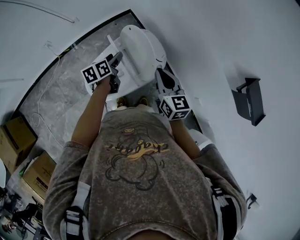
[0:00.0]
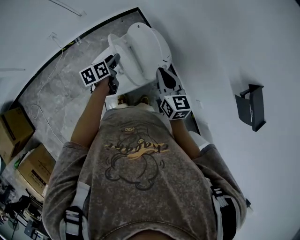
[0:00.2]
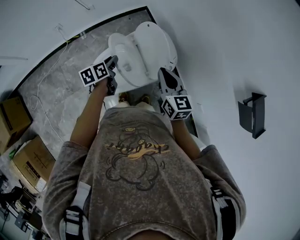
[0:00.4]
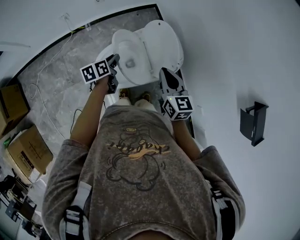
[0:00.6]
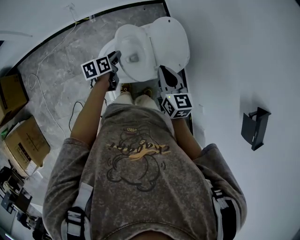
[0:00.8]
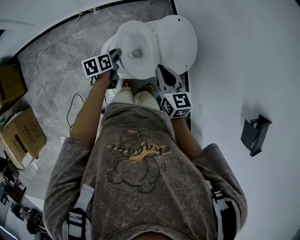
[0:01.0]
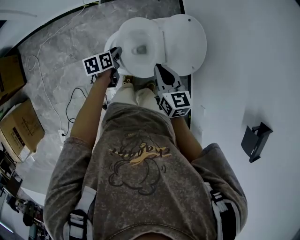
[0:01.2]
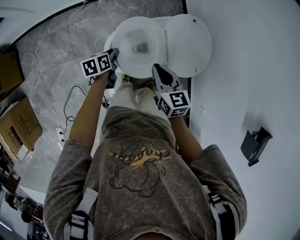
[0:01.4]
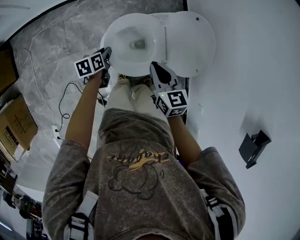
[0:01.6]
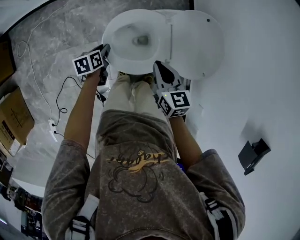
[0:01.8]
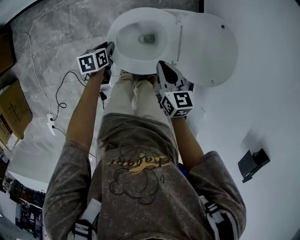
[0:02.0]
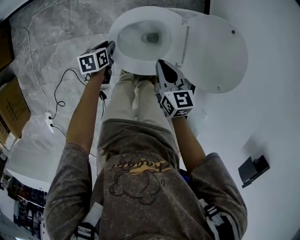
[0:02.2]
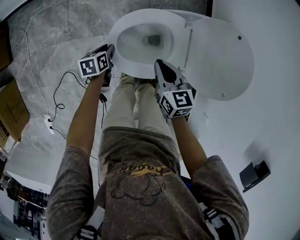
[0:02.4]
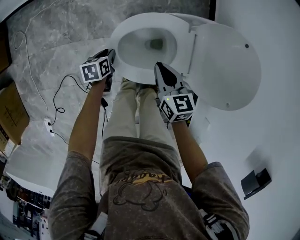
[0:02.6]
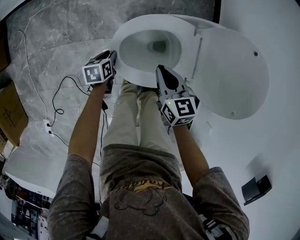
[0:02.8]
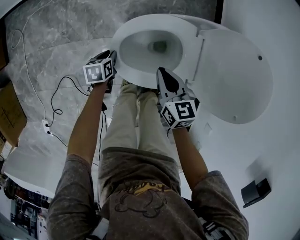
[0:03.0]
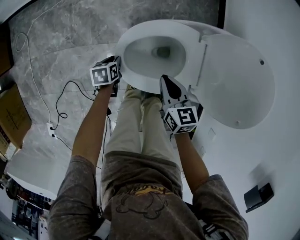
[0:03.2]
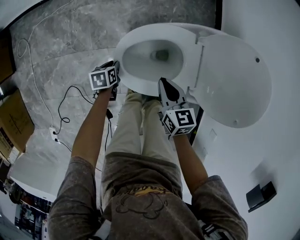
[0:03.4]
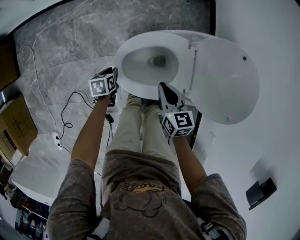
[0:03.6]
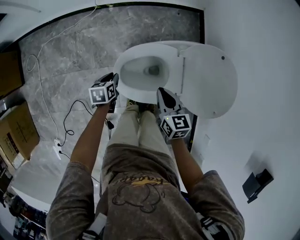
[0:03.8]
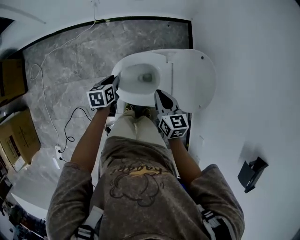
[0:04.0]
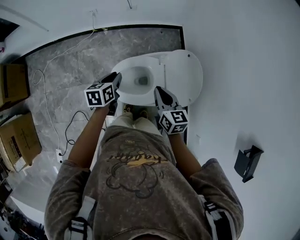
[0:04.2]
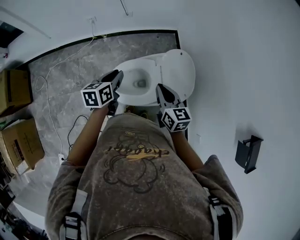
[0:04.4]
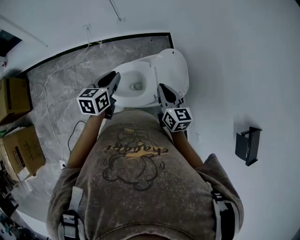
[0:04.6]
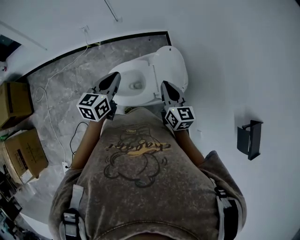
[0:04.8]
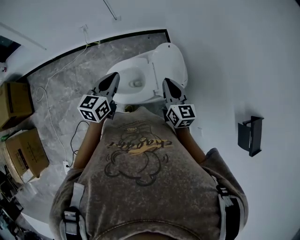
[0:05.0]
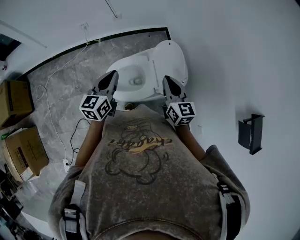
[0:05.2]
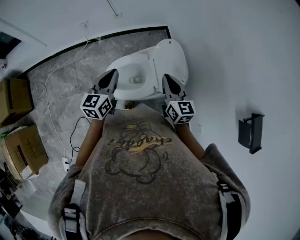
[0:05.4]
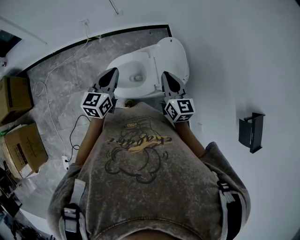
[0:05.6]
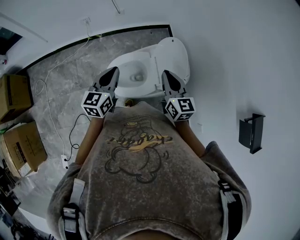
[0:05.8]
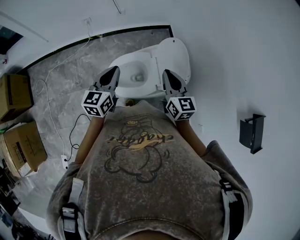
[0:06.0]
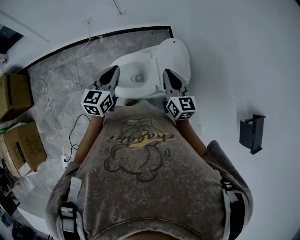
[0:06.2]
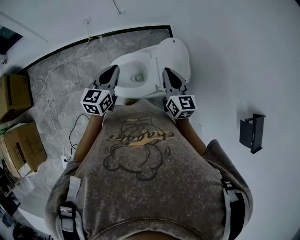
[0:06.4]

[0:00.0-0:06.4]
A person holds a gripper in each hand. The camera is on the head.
0:00.0 to 0:01.6: Both grippers travel together to the left and downward, about 30 cm. The left gripper turns by some 20 degrees, and closes. Meanwhile the right gripper turns by approximately 30 degrees.
0:01.6 to 0:03.2: Both grippers travel together downward, some 20 cm.
0:03.2 to 0:04.8: The right gripper heads upward and to the right, covering about 40 cm, and swivels roughly 30 degrees; the left gripper is displaced upward by roughly 60 cm, and angles its fingers upward, by approximately 50 degrees.
0:04.8 to 0:06.4: The grippers make only small movements.

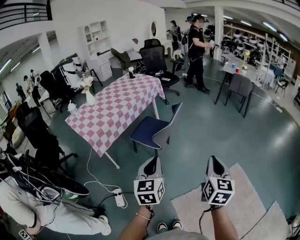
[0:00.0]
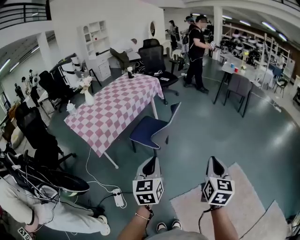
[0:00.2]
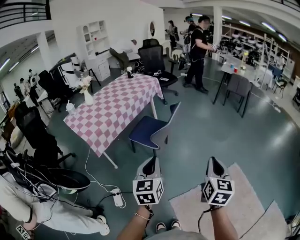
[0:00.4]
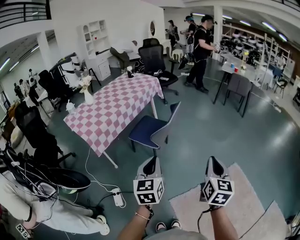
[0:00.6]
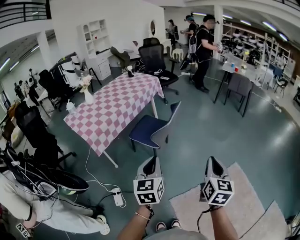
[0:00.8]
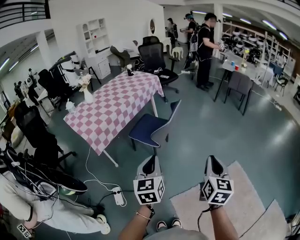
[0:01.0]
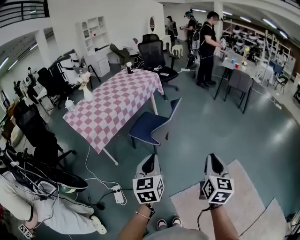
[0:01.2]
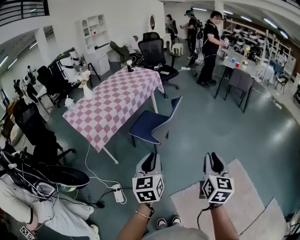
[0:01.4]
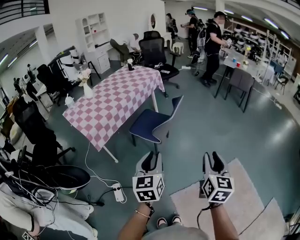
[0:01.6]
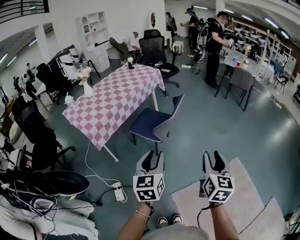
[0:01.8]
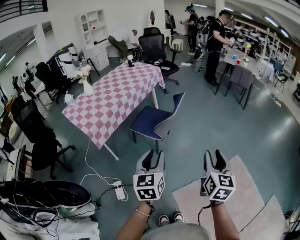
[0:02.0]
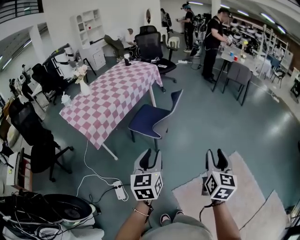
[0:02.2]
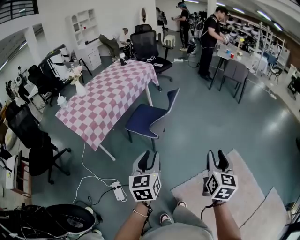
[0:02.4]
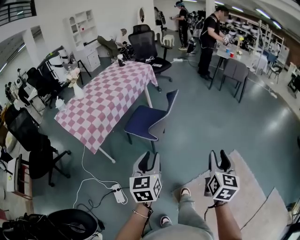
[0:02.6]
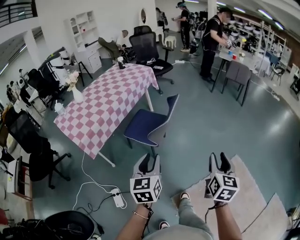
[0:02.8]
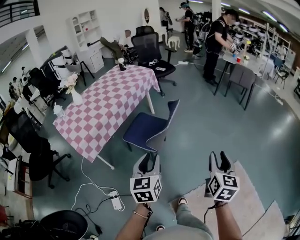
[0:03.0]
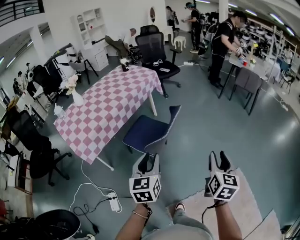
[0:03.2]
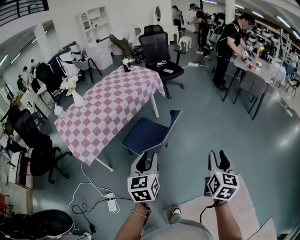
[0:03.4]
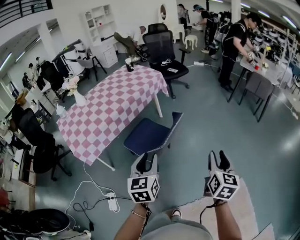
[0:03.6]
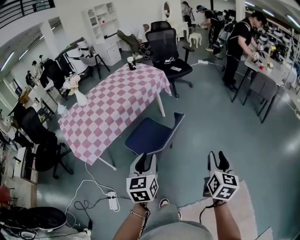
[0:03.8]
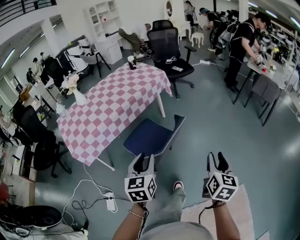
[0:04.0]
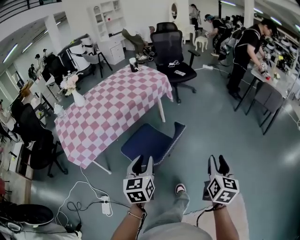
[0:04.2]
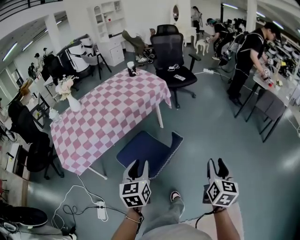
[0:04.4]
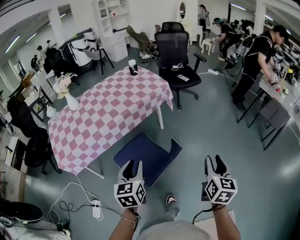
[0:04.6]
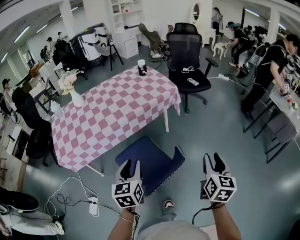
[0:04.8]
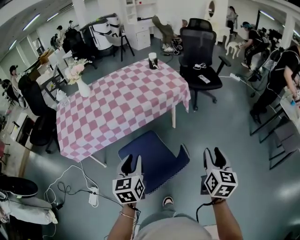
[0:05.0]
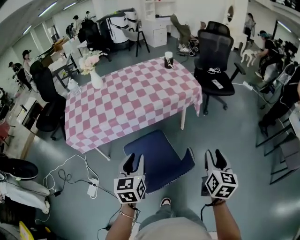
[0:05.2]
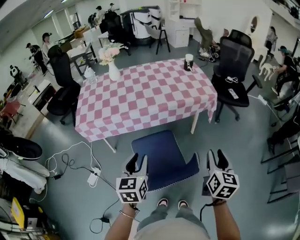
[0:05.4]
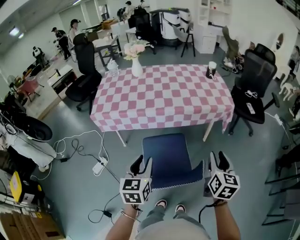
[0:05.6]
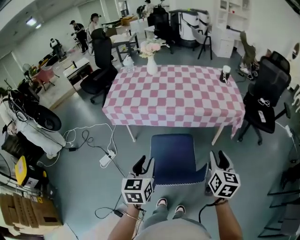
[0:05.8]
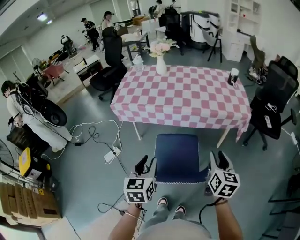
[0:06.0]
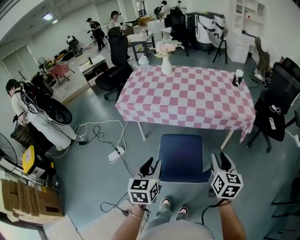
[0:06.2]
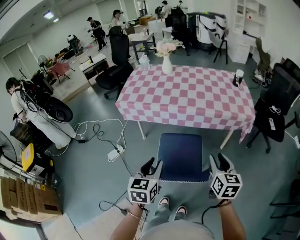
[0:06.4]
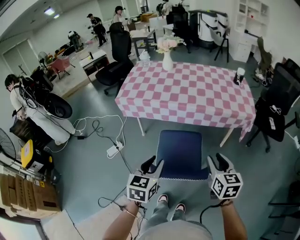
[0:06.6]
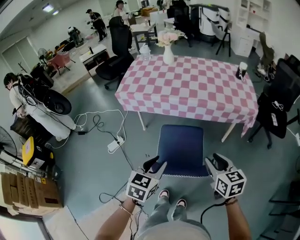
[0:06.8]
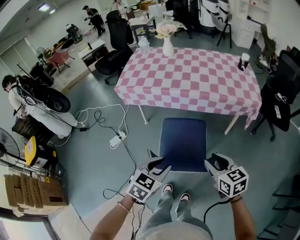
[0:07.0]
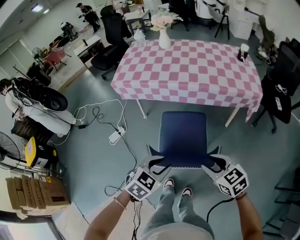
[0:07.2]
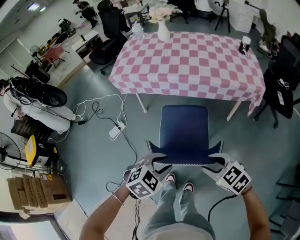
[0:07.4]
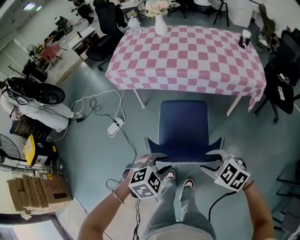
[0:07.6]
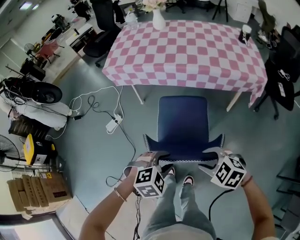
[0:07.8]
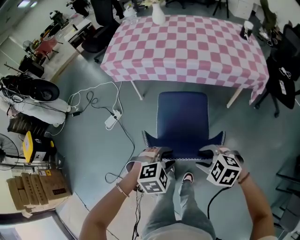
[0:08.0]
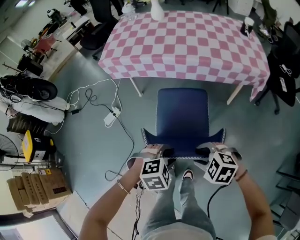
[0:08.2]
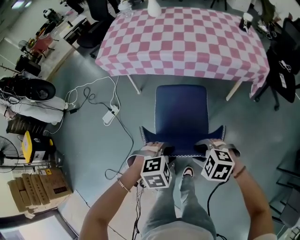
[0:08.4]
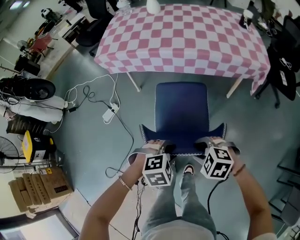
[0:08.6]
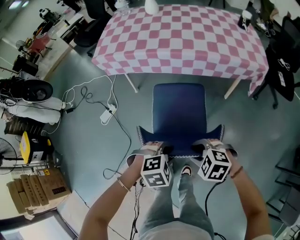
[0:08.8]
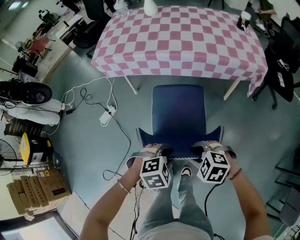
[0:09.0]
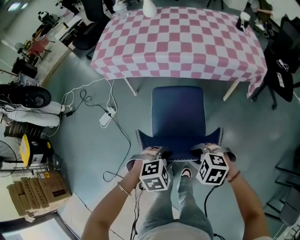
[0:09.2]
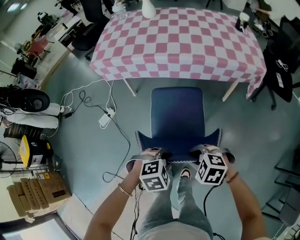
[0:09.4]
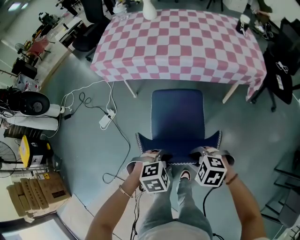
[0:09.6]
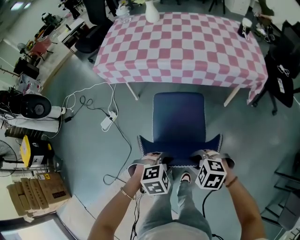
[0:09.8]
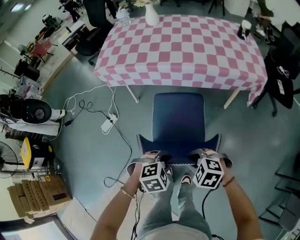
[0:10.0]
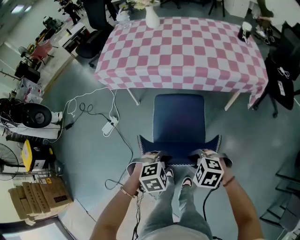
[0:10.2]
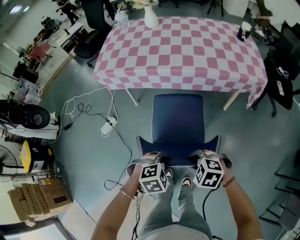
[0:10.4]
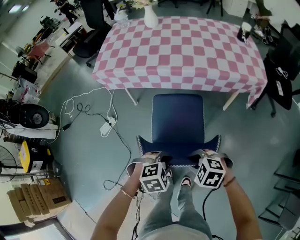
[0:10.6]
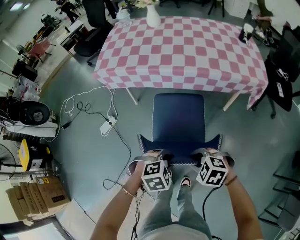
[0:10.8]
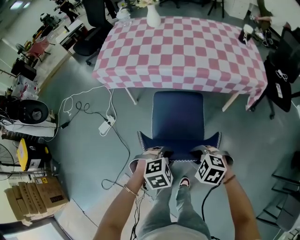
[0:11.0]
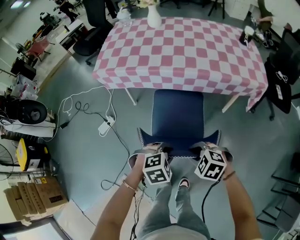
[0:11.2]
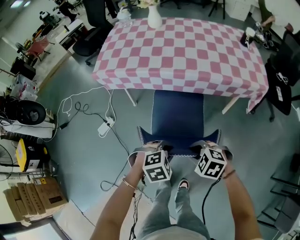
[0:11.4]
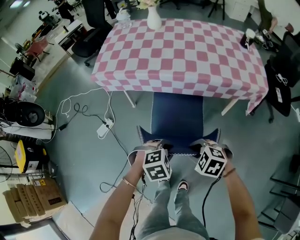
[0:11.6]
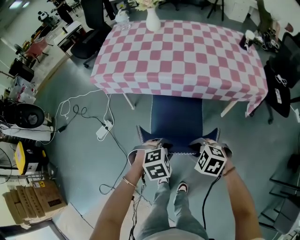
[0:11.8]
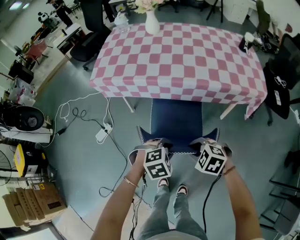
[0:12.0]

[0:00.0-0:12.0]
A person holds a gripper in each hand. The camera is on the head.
0:00.0 to 0:01.6: The right gripper opens its fingers, while the left gripper opens its fingers.
0:01.6 to 0:03.0: The two grippers go some 15 cm forward.
0:03.0 to 0:04.4: Both grippers move forward, roughly 35 cm.
0:04.4 to 0:06.0: The right gripper changes place by some 35 cm, and changes its angle by approximately 60 degrees, while the left gripper rotates roughly 50 degrees.
0:06.0 to 0:07.6: The left gripper travels downward, backward and to the right by approximately 20 cm, and tips its fingers downward by roughly 40 degrees. Meanwhile the right gripper heads downward, backward and to the left, covering some 20 cm, and points its fingers some 30 degrees further downward.
0:07.6 to 0:09.0: Both grippers travel together downward, roughly 10 cm.
0:09.0 to 0:10.4: The grippers stay close to where they were, moving slightly.
0:10.4 to 0:12.0: The left gripper changes place by some 15 cm, while the right gripper ends up roughly 10 cm from where it was.

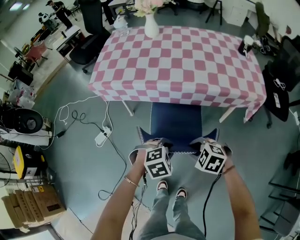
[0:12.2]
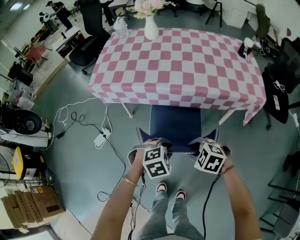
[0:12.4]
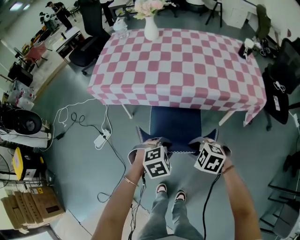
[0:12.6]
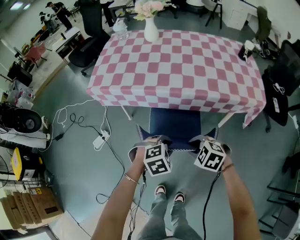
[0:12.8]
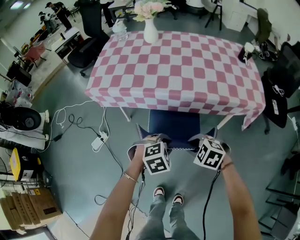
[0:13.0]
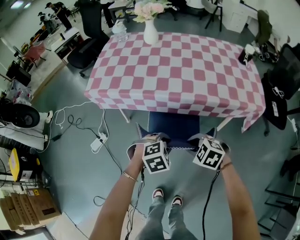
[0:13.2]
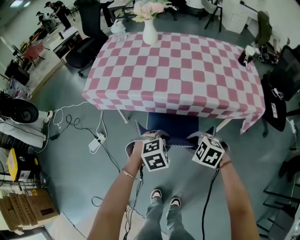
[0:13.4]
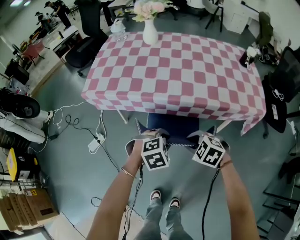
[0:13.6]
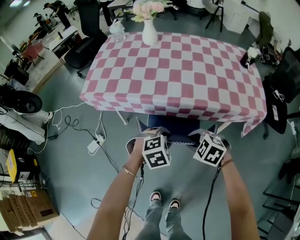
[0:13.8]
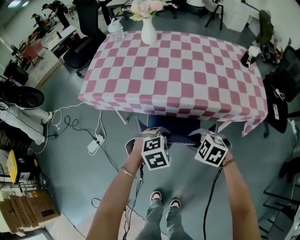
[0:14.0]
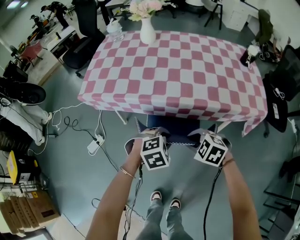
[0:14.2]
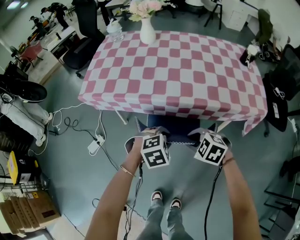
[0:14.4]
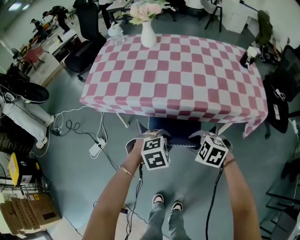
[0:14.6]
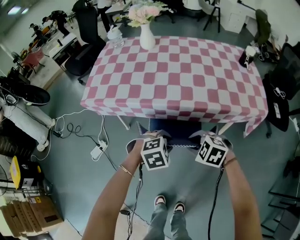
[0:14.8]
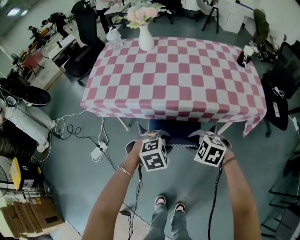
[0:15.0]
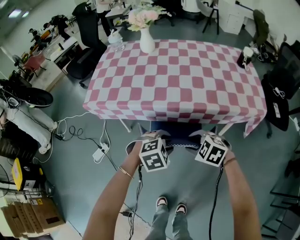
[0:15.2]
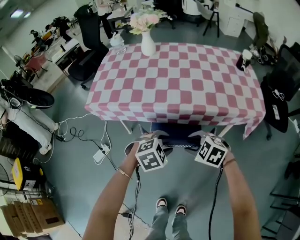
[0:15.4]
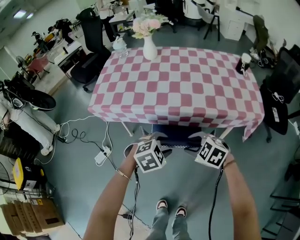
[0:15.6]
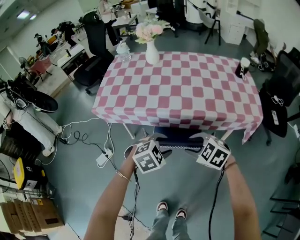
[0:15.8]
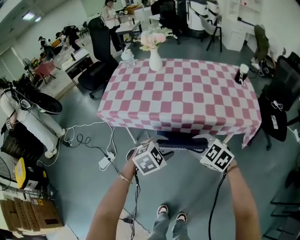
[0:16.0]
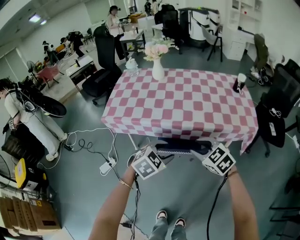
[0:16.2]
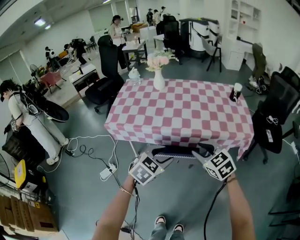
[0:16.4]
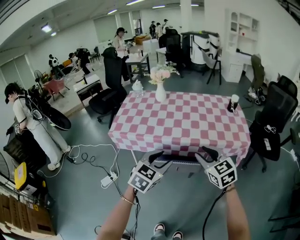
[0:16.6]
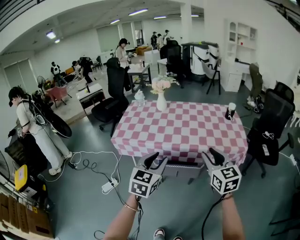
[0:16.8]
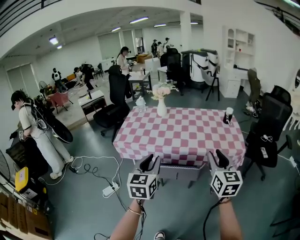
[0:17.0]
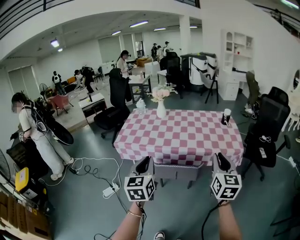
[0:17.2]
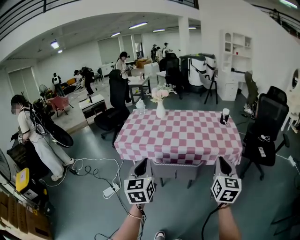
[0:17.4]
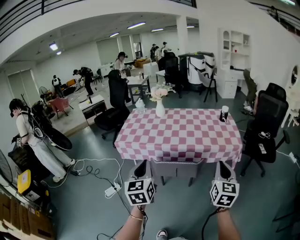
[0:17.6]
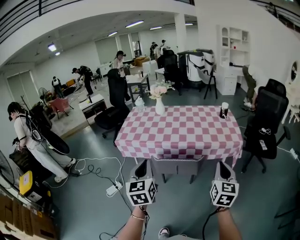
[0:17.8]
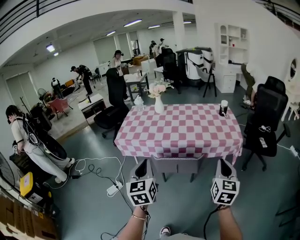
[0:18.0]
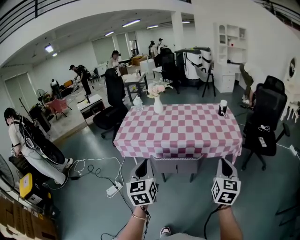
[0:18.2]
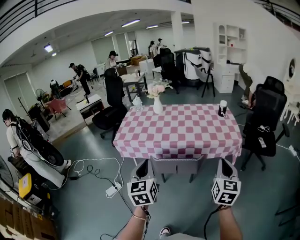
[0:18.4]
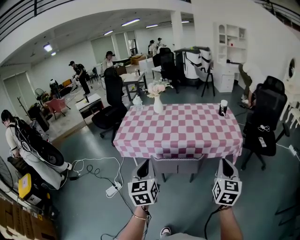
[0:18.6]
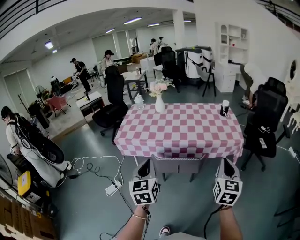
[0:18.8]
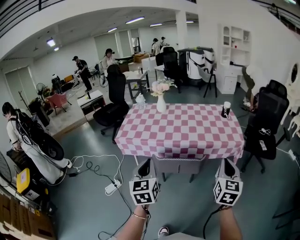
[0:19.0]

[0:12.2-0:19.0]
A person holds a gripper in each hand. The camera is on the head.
0:12.2 to 0:13.6: Both grippers travel together forward, about 10 cm.
0:13.6 to 0:15.0: The grippers make only small movements.
0:15.0 to 0:16.2: The two grippers go approximately 15 cm upward. The left gripper changes its angle by about 20 degrees; the right gripper rotates about 30 degrees.
0:16.2 to 0:17.6: The right gripper travels backward, upward and to the right by approximately 30 cm, tips its fingers upward by roughly 30 degrees, and closes its fingers, while the left gripper travels upward, backward and to the left by about 30 cm, tips its fingers upward by some 40 degrees, and closes its fingers.
0:17.6 to 0:19.0: There are only small adjustments of the grippers.
